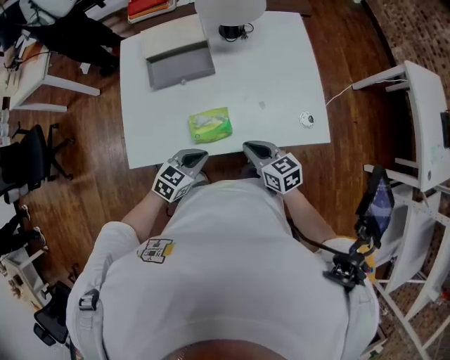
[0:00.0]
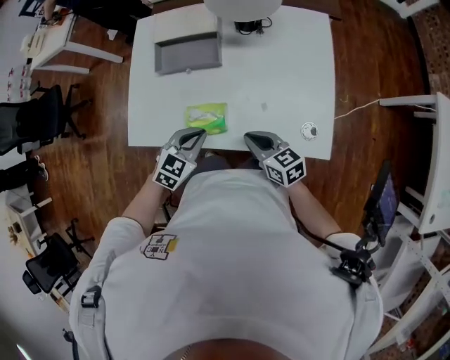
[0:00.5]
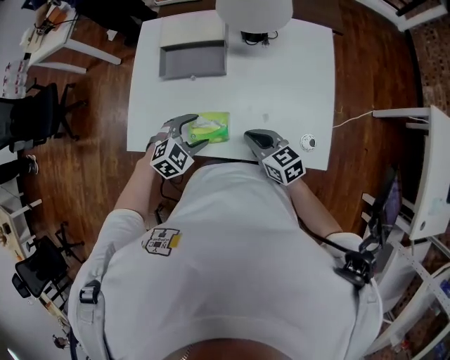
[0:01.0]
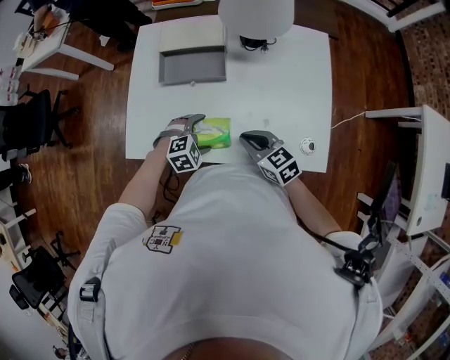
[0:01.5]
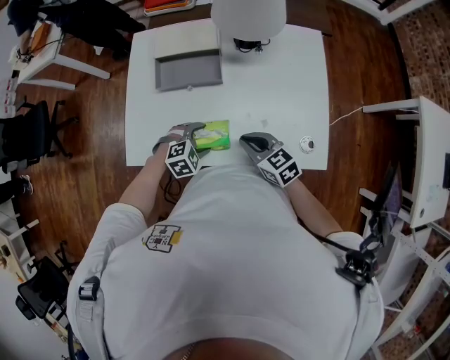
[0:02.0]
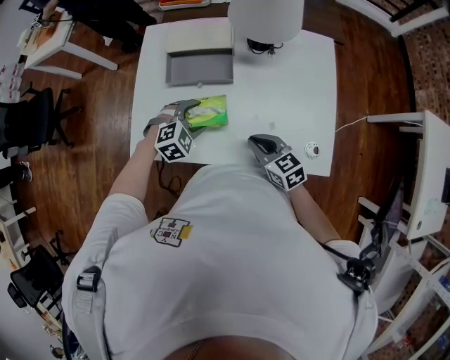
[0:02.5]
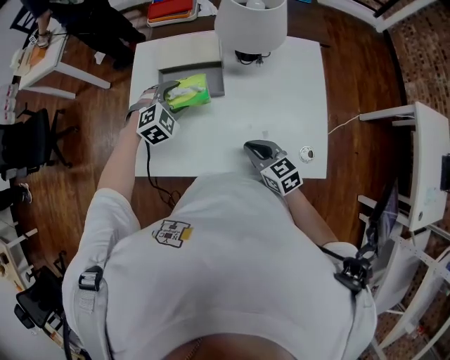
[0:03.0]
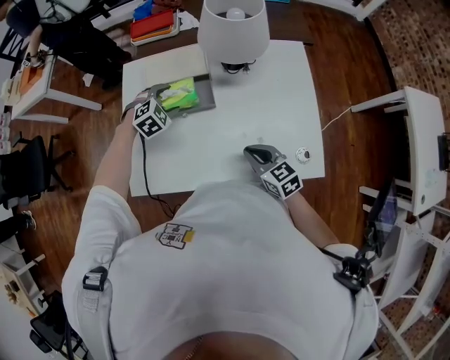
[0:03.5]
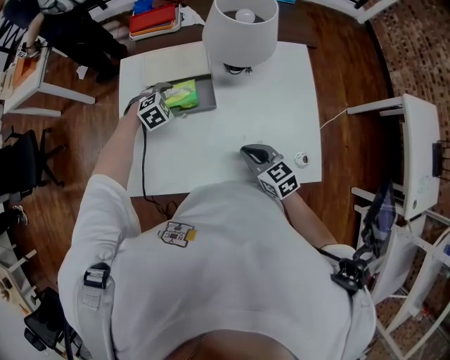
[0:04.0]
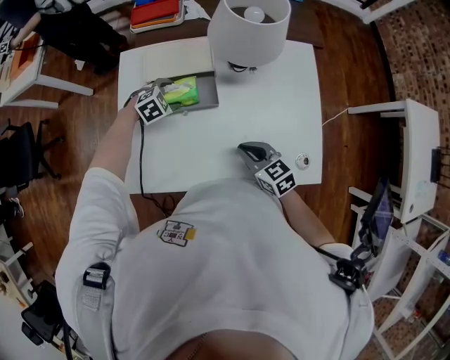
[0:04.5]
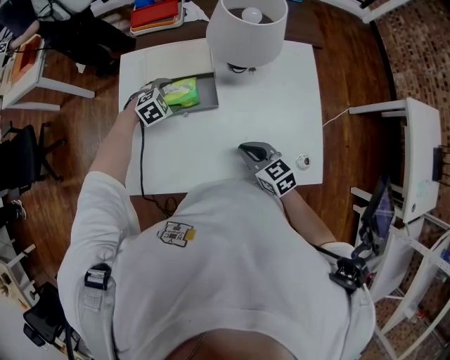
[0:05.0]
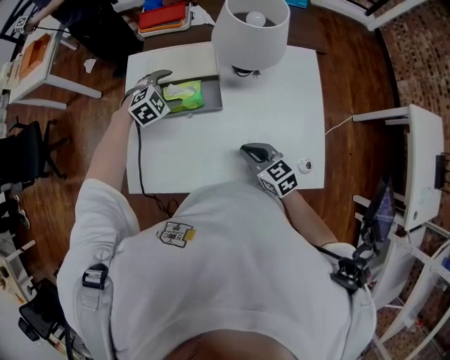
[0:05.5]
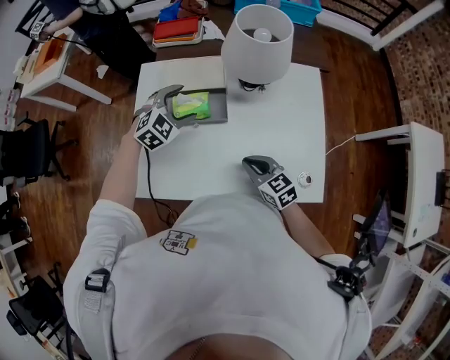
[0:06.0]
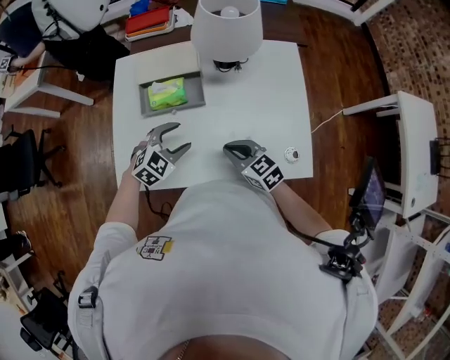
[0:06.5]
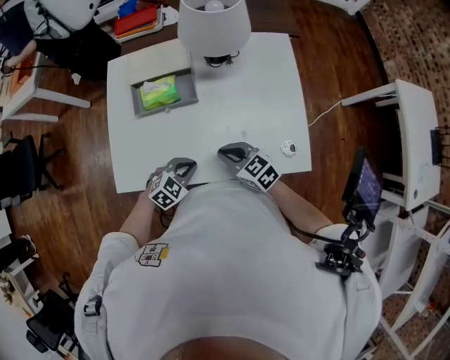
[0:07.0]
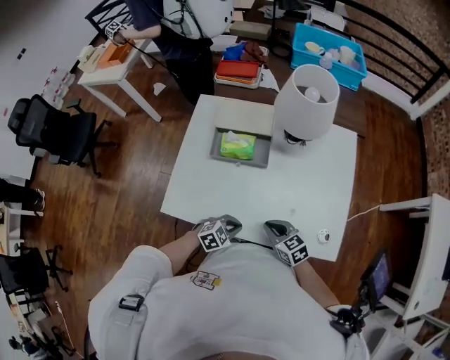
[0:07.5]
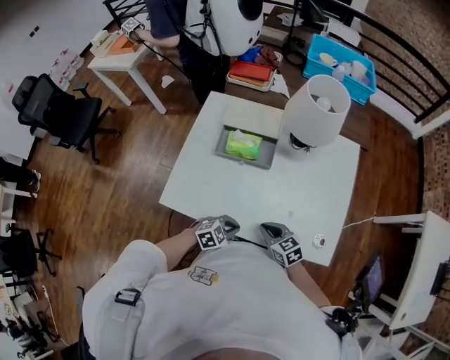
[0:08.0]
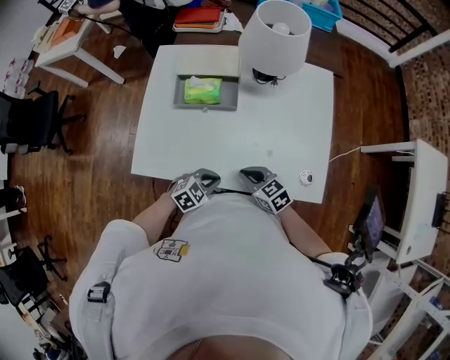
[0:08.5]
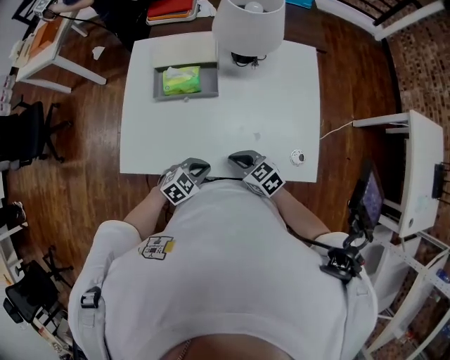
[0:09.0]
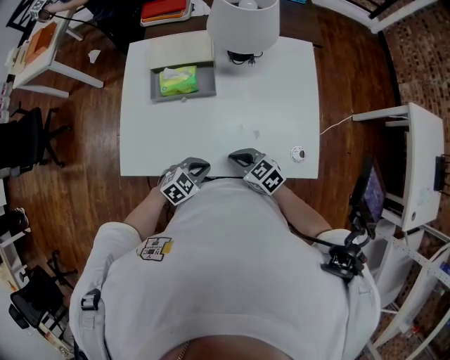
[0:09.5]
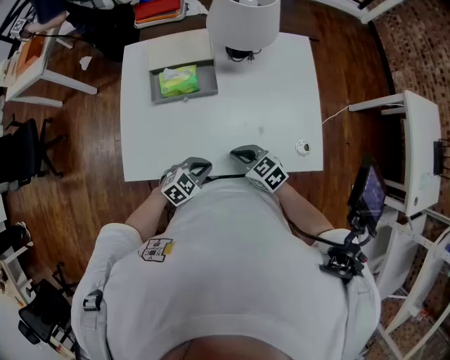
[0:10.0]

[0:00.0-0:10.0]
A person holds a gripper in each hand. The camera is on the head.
0:00.0 to 0:02.0: Both grippers travel together forward, roughly 10 cm. The left gripper changes its angle by about 40 degrees, and opens.
0:02.0 to 0:04.0: The left gripper travels forward by about 25 cm.
0:04.0 to 0:06.0: The left gripper is displaced upward by about 15 cm, and turns by some 20 degrees.
0:06.0 to 0:08.0: The right gripper changes place by approximately 10 cm; the left gripper shifts by approximately 35 cm, rotates about 30 degrees, and closes its fingers.
0:08.0 to 0:10.0: There are only small adjustments of the grippers.

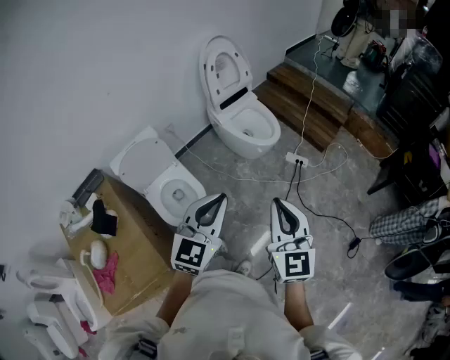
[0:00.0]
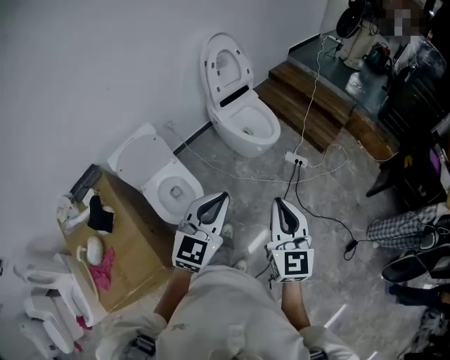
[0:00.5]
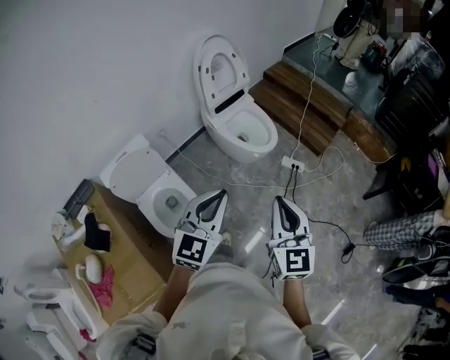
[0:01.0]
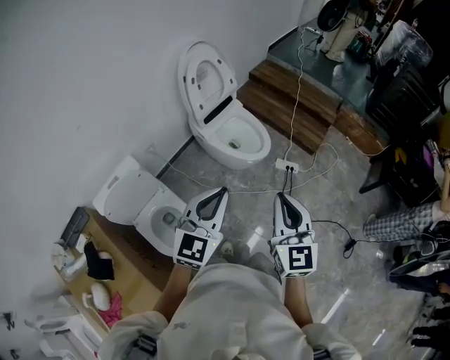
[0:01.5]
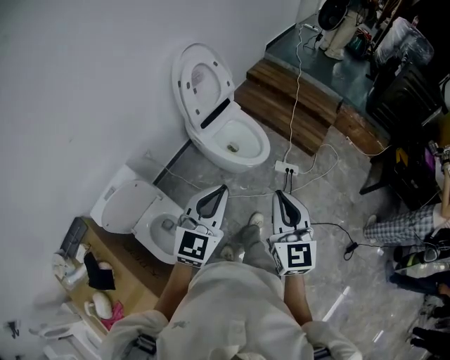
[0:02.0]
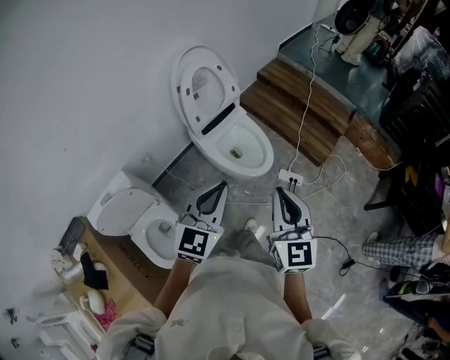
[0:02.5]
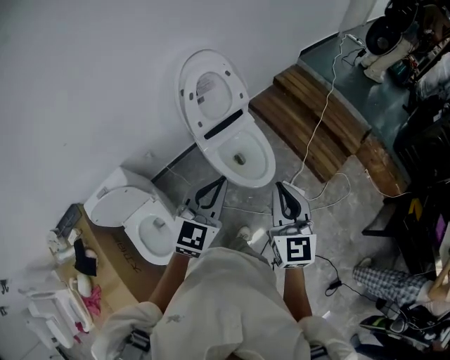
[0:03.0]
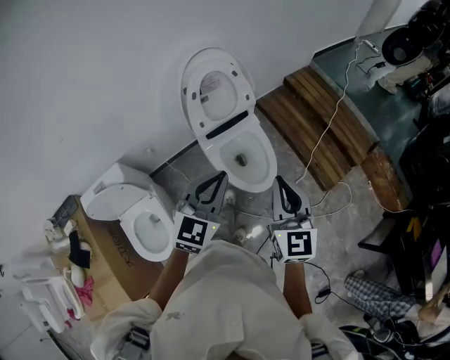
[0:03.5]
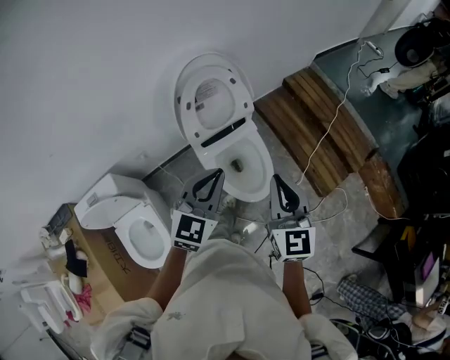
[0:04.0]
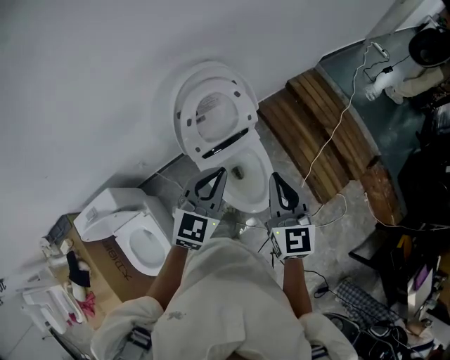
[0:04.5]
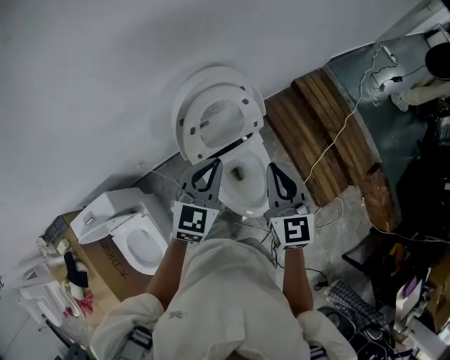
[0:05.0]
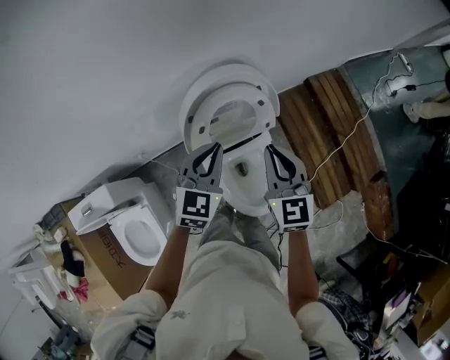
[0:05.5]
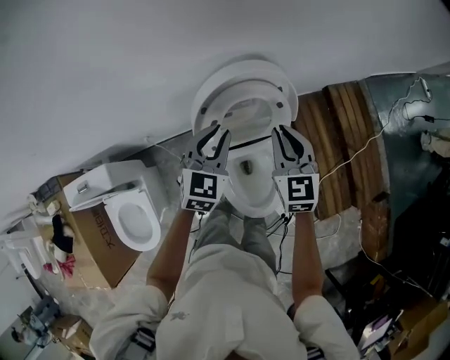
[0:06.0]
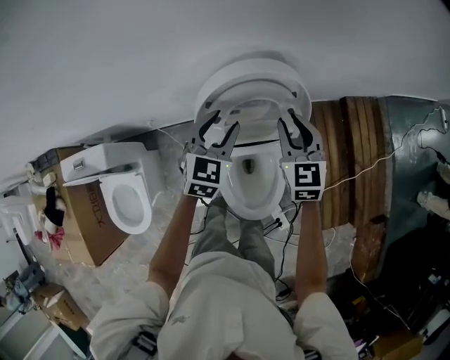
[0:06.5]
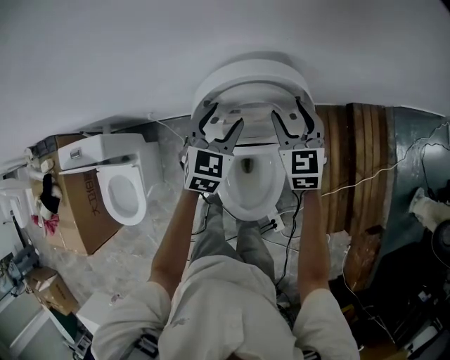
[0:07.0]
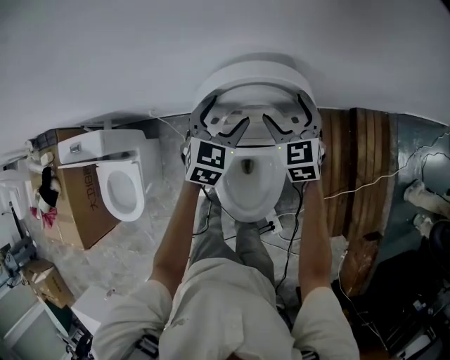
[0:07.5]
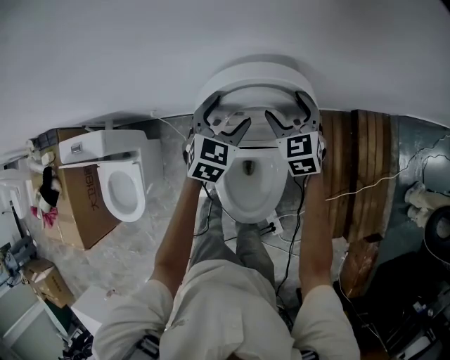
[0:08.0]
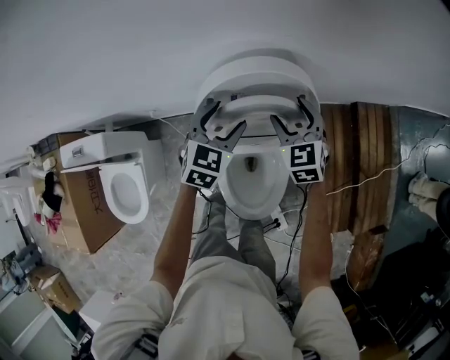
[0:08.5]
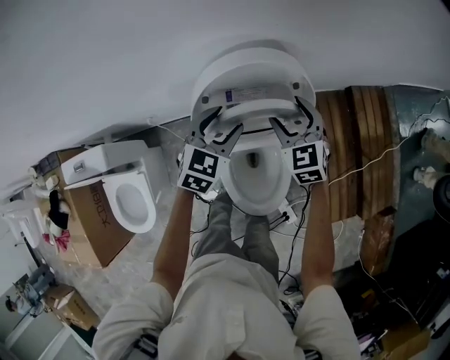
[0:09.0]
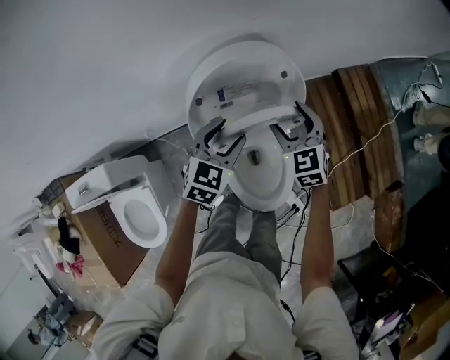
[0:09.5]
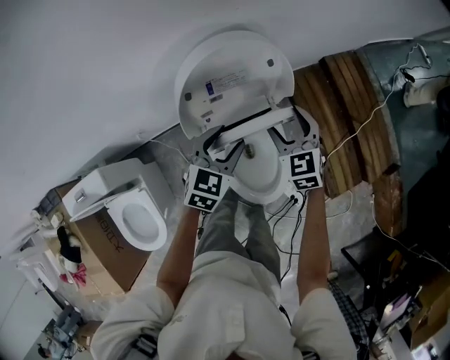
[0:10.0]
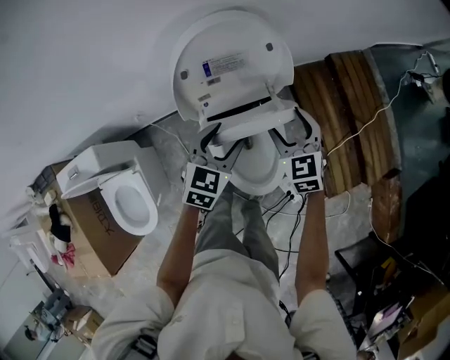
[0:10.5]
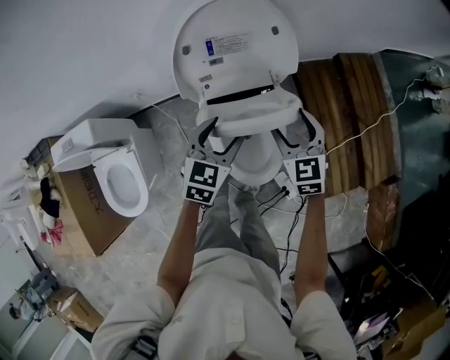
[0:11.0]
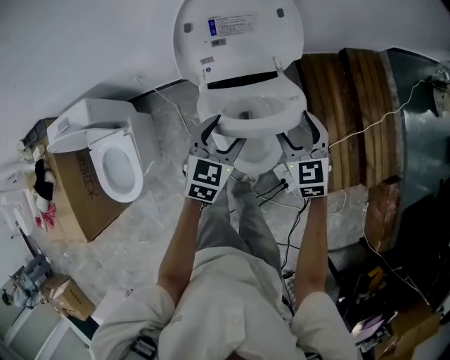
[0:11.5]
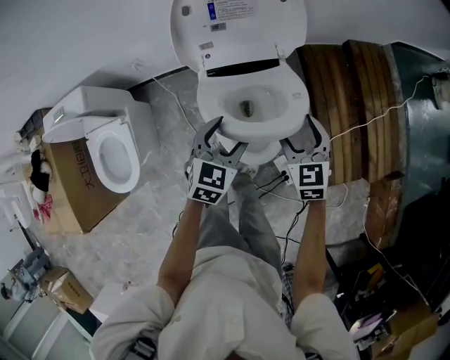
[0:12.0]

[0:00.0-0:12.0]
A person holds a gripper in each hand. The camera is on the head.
0:00.0 to 0:02.0: The two grippers go roughly 25 cm forward.
0:02.0 to 0:04.0: Both grippers travel together forward, about 35 cm. The right gripper changes its angle by approximately 20 degrees.
0:04.0 to 0:06.0: The right gripper moves forward, approximately 35 cm, and changes its angle by about 20 degrees; the left gripper is displaced forward and downward by some 30 cm, and rotates approximately 20 degrees.
0:06.0 to 0:08.0: The left gripper heads downward and forward, covering some 10 cm, and opens. Meanwhile the right gripper heads forward and downward, covering some 20 cm, changes its angle by approximately 30 degrees, and opens its fingers.
0:08.0 to 0:10.0: The left gripper goes approximately 15 cm backward, and turns by some 20 degrees, while the right gripper goes approximately 15 cm backward and to the right.
0:10.0 to 0:12.0: The right gripper goes some 20 cm backward and to the right, while the left gripper goes some 20 cm backward and downward.

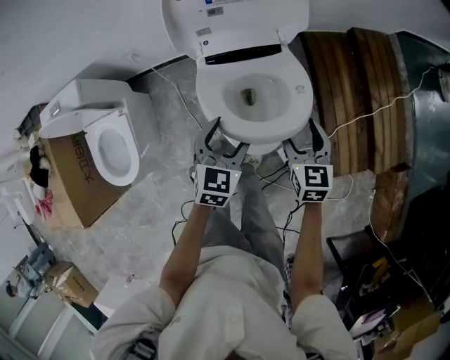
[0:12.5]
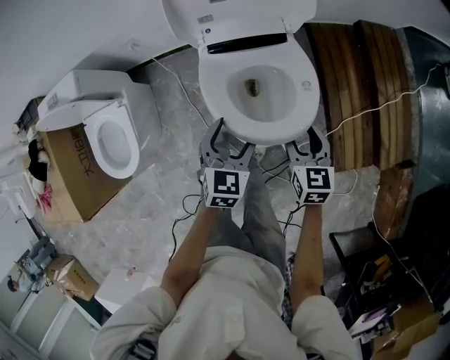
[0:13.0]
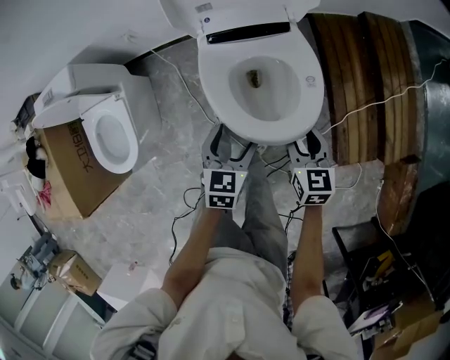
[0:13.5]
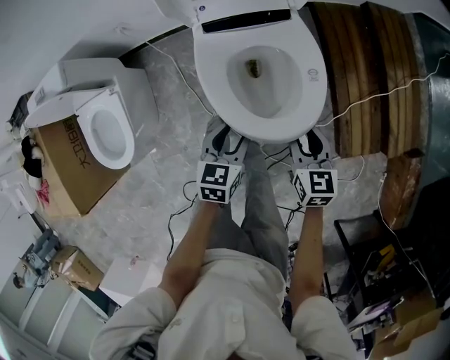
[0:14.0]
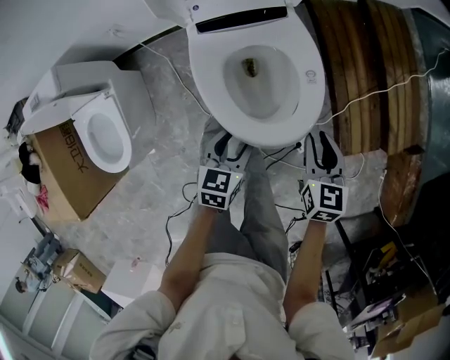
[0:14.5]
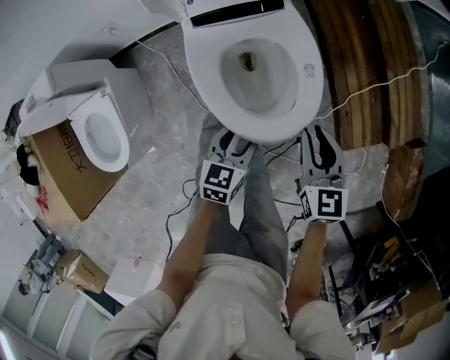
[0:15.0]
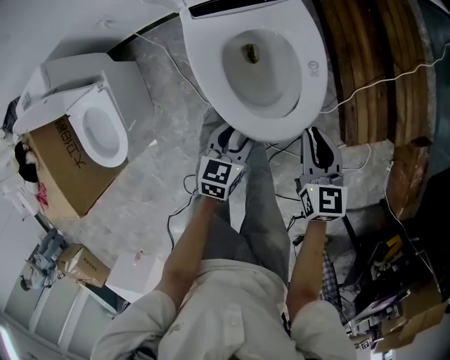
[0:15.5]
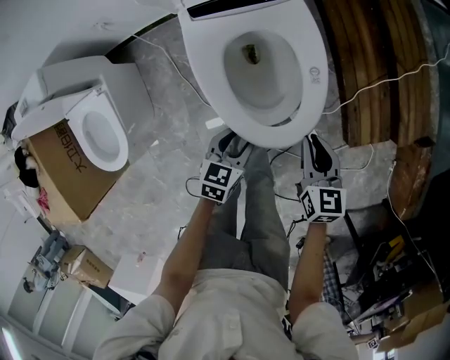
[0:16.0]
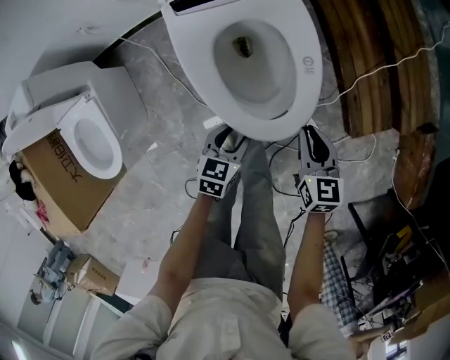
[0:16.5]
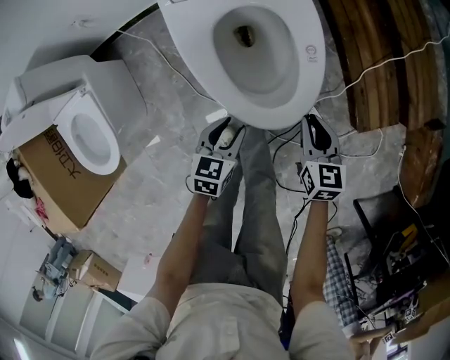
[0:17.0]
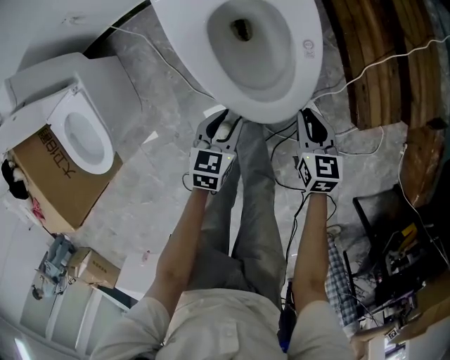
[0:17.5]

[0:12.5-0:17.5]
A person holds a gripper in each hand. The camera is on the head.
0:12.5 to 0:15.0: The left gripper heads downward and backward, covering about 15 cm, and swivels approximately 20 degrees. The right gripper shifts some 10 cm backward, and closes.
0:15.0 to 0:17.5: Both grippers travel together downward, about 20 cm.
